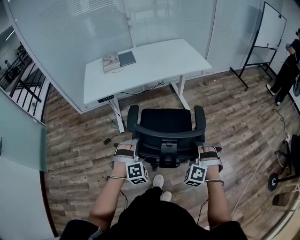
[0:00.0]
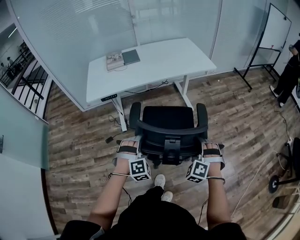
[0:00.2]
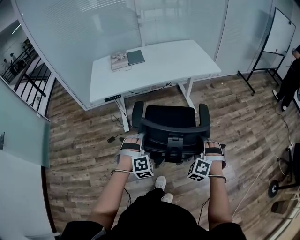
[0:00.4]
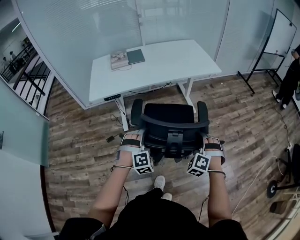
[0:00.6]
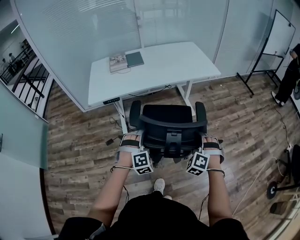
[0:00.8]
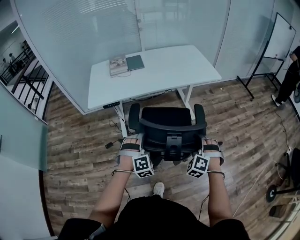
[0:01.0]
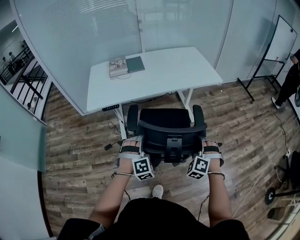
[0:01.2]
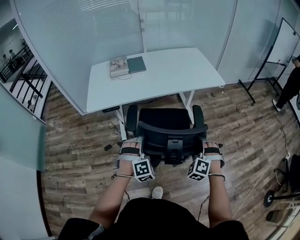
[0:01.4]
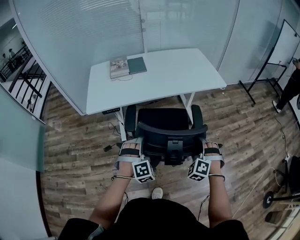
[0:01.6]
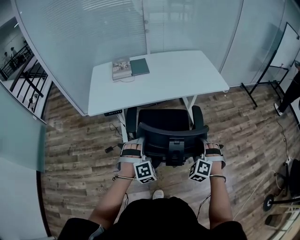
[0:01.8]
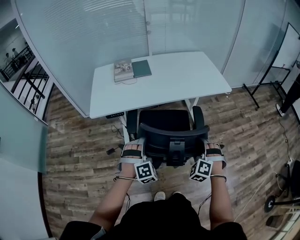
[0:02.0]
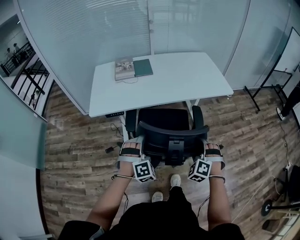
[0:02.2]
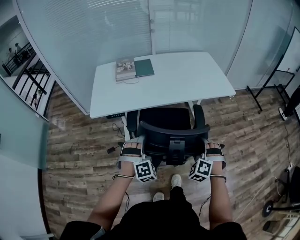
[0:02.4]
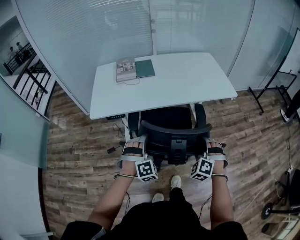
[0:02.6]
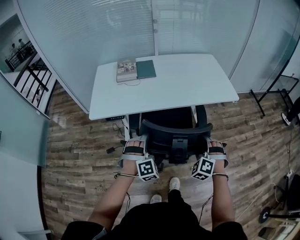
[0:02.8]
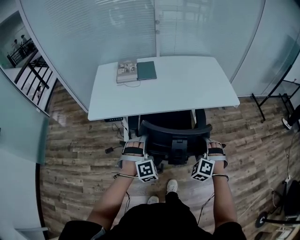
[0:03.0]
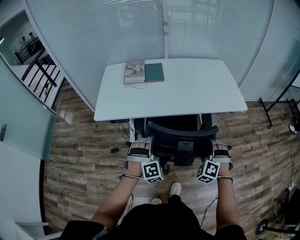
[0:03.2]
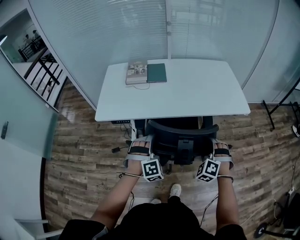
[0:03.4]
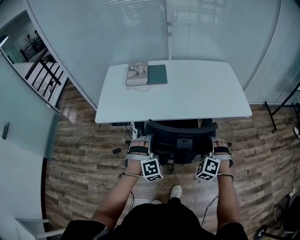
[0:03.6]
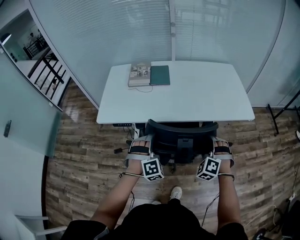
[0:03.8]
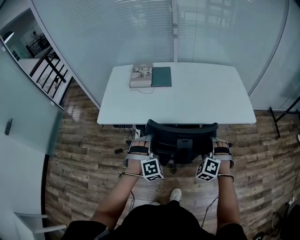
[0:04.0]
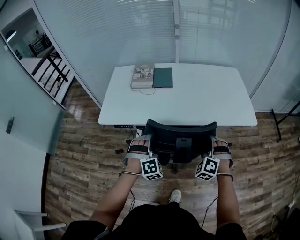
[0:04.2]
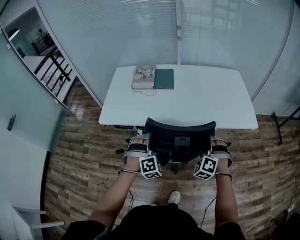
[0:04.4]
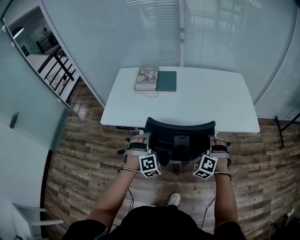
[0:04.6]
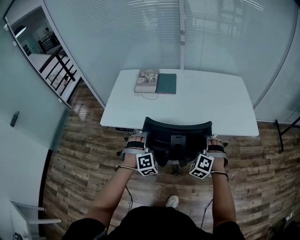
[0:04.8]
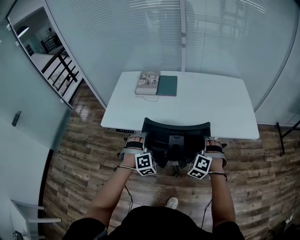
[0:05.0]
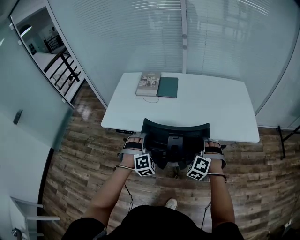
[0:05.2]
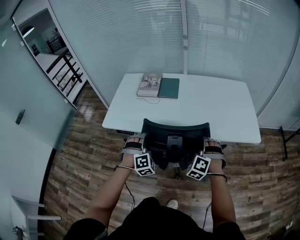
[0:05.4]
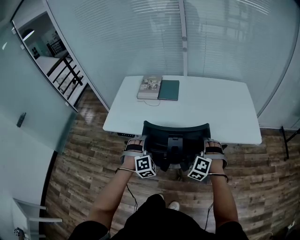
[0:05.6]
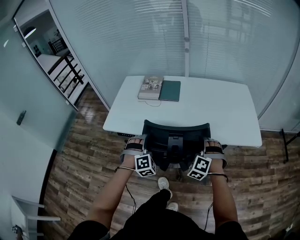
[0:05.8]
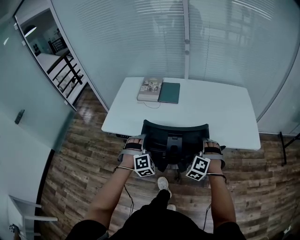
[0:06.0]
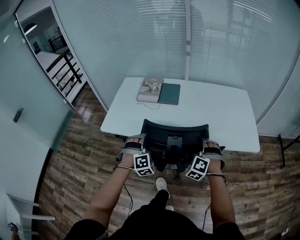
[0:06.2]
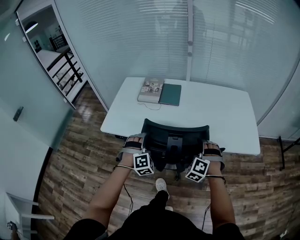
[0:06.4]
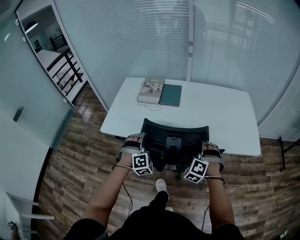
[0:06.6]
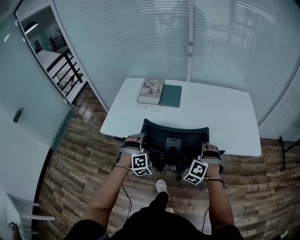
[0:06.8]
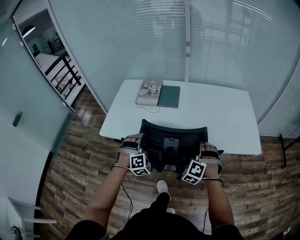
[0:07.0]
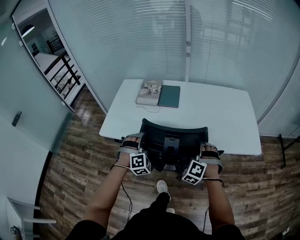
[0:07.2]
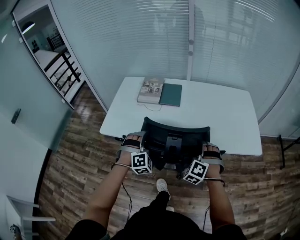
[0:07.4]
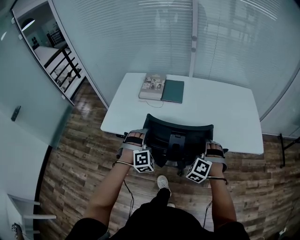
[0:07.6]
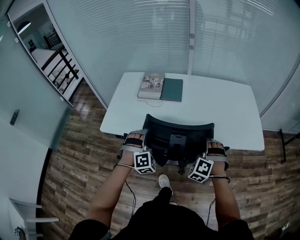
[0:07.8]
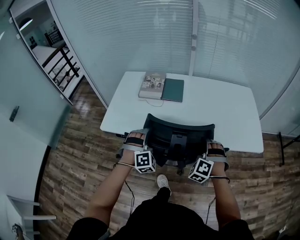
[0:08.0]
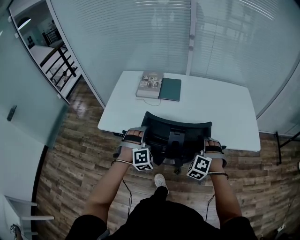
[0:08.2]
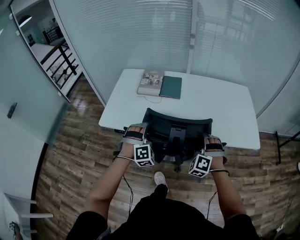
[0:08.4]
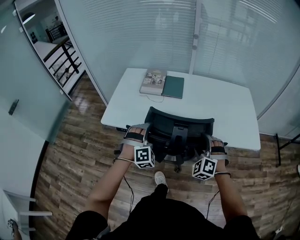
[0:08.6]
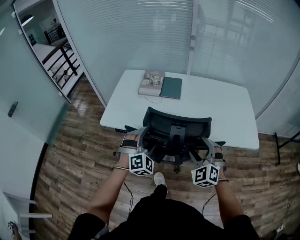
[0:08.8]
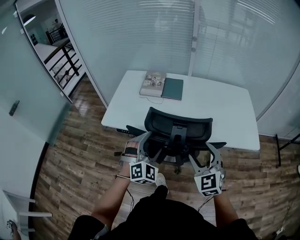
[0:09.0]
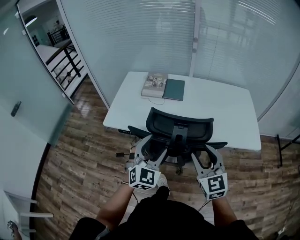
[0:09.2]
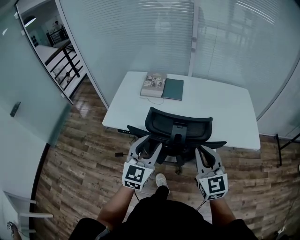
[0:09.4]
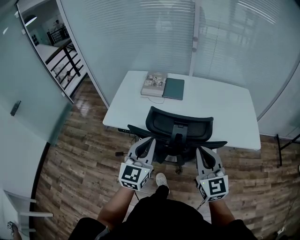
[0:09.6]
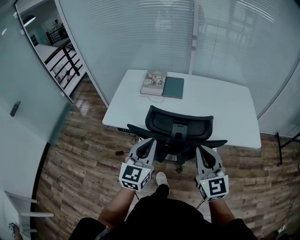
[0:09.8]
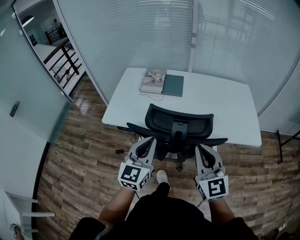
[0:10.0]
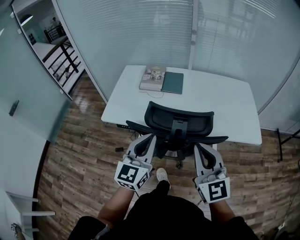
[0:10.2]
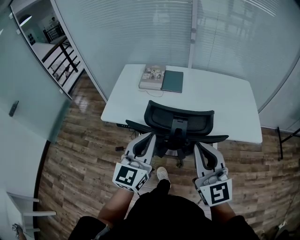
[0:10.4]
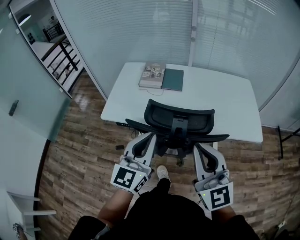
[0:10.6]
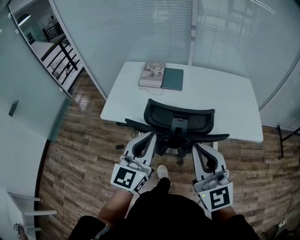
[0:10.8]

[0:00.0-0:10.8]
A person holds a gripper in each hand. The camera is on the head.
0.0 to 1.6 s: The two grippers go some 15 cm forward.
1.6 to 3.0 s: Both grippers travel together forward, about 15 cm.
3.0 to 4.6 s: Both grippers move forward, approximately 15 cm.
4.6 to 6.2 s: Both grippers travel together forward, approximately 5 cm.
6.2 to 7.8 s: There are only small adjustments of the grippers.
7.8 to 9.2 s: Both grippers move upward and backward, roughly 15 cm. The right gripper turns by some 70 degrees. Meanwhile the left gripper rotates around the line of its fingers by approximately 40 degrees, counterclockwise from behind.
9.2 to 10.8 s: Both grippers travel together upward, some 10 cm. The left gripper changes its angle by approximately 40 degrees, and closes its fingers; the right gripper swivels about 20 degrees, and closes up.

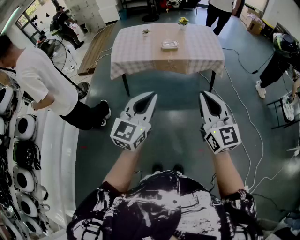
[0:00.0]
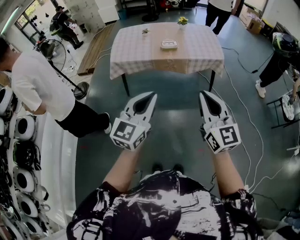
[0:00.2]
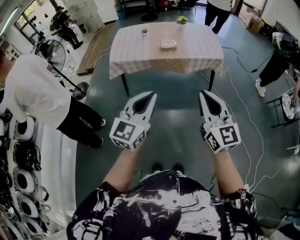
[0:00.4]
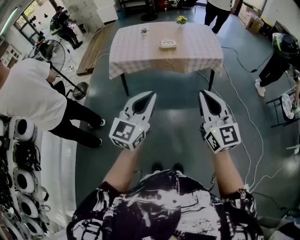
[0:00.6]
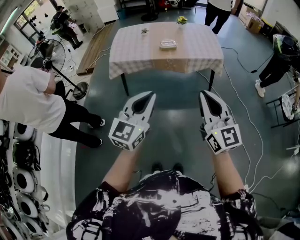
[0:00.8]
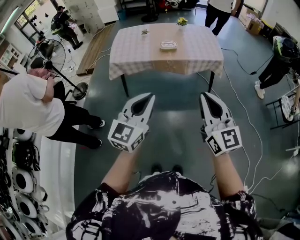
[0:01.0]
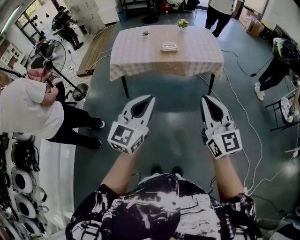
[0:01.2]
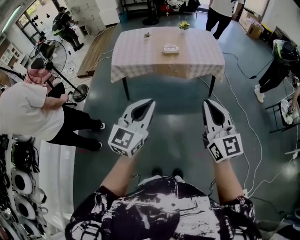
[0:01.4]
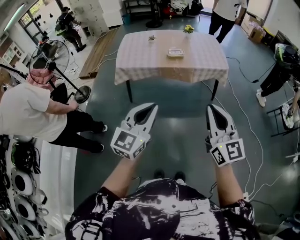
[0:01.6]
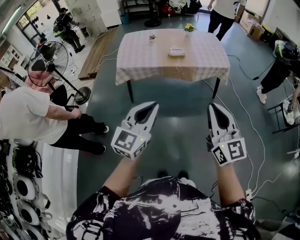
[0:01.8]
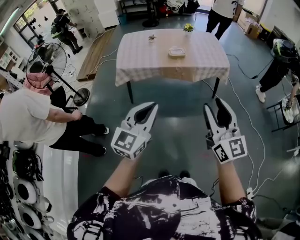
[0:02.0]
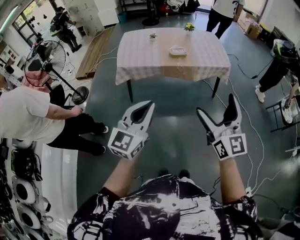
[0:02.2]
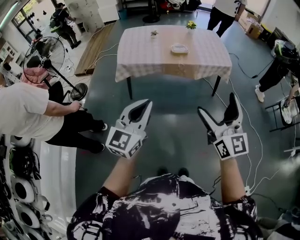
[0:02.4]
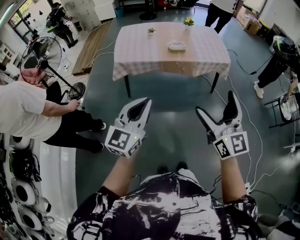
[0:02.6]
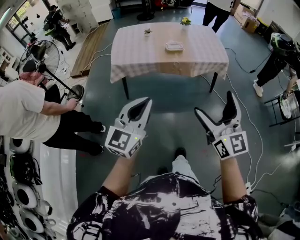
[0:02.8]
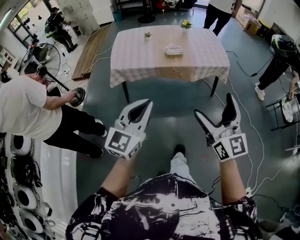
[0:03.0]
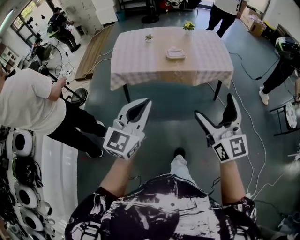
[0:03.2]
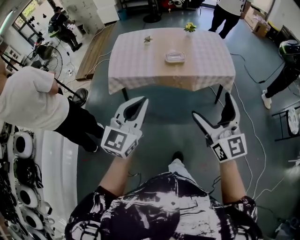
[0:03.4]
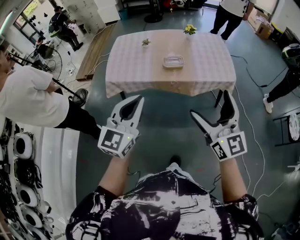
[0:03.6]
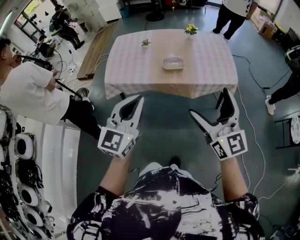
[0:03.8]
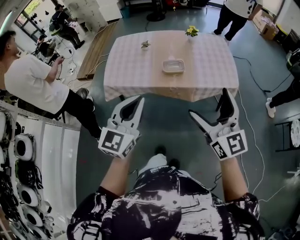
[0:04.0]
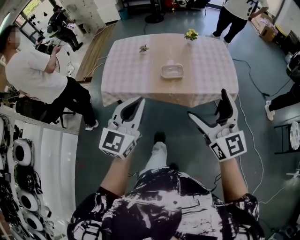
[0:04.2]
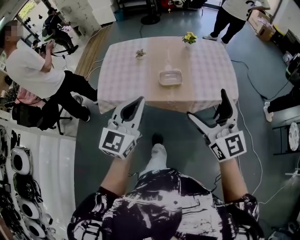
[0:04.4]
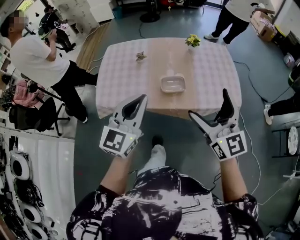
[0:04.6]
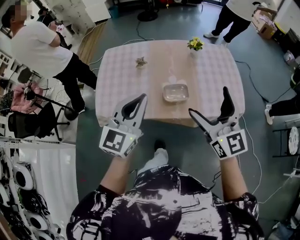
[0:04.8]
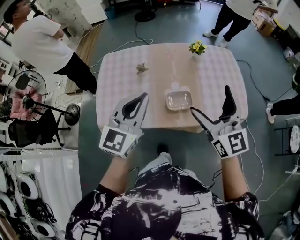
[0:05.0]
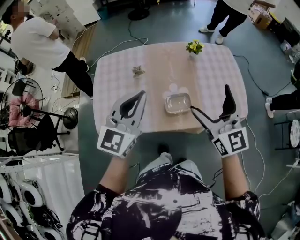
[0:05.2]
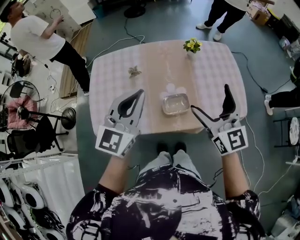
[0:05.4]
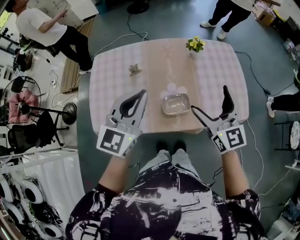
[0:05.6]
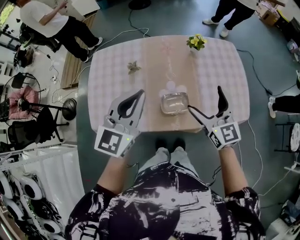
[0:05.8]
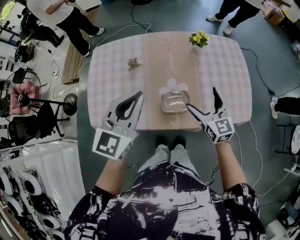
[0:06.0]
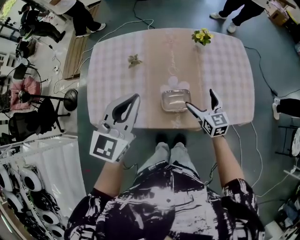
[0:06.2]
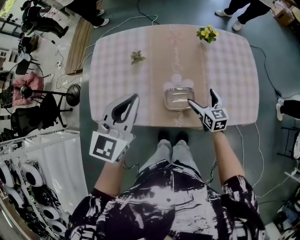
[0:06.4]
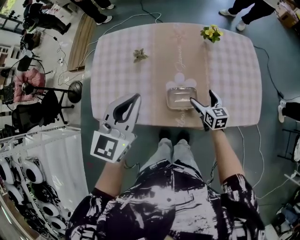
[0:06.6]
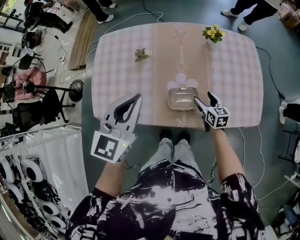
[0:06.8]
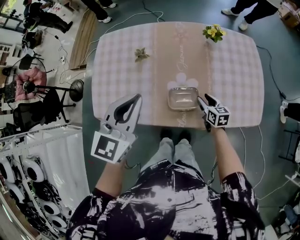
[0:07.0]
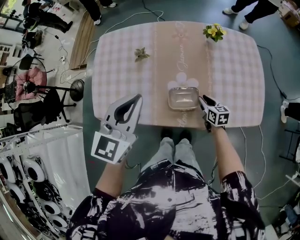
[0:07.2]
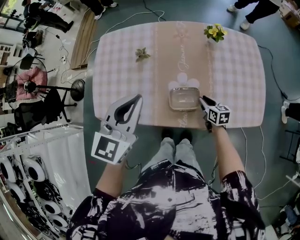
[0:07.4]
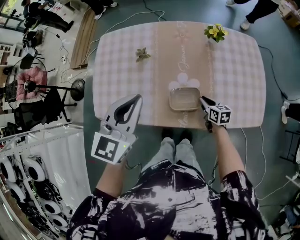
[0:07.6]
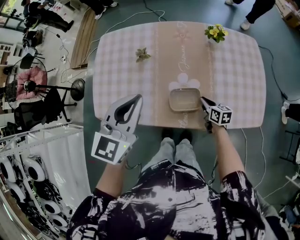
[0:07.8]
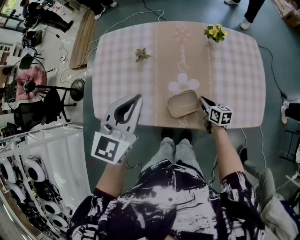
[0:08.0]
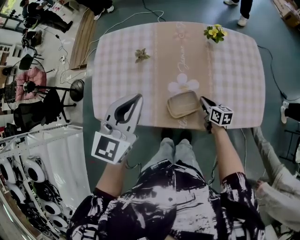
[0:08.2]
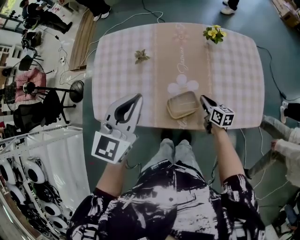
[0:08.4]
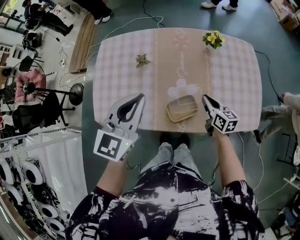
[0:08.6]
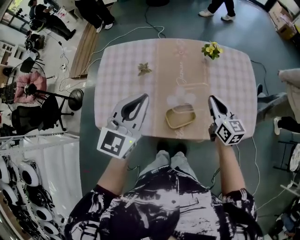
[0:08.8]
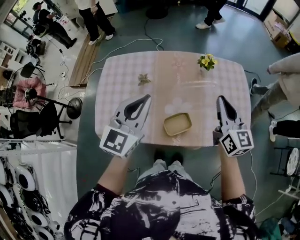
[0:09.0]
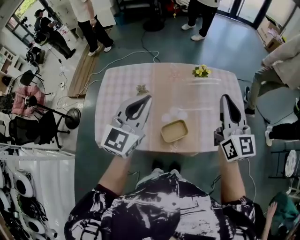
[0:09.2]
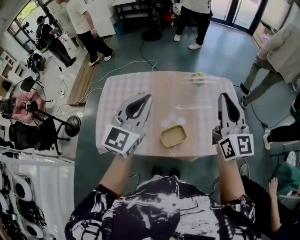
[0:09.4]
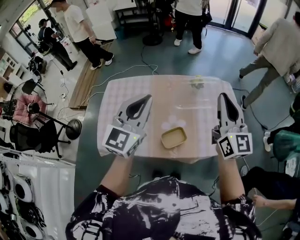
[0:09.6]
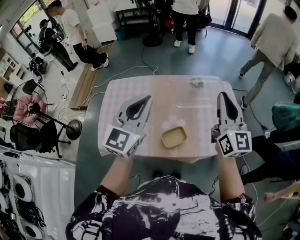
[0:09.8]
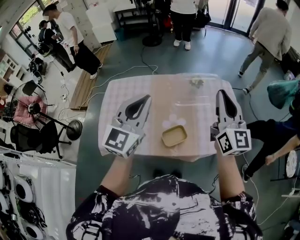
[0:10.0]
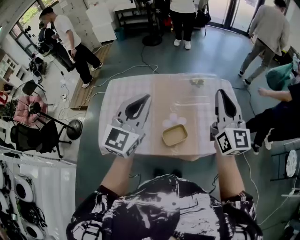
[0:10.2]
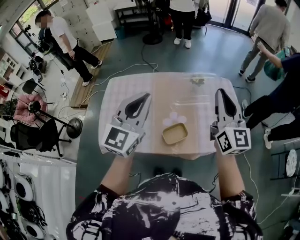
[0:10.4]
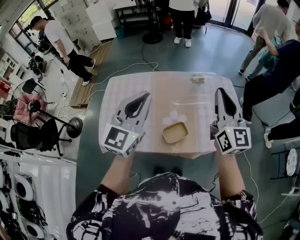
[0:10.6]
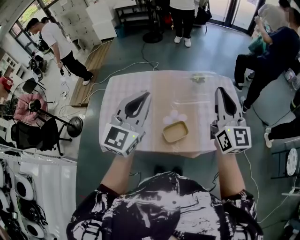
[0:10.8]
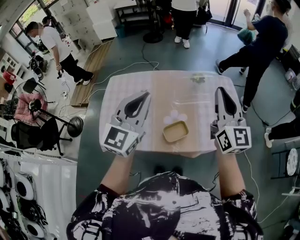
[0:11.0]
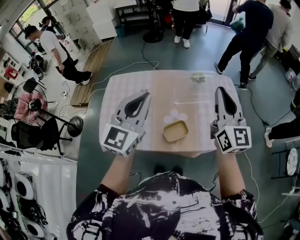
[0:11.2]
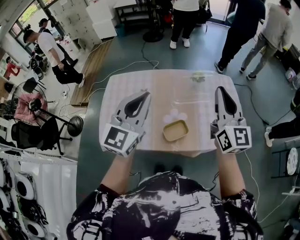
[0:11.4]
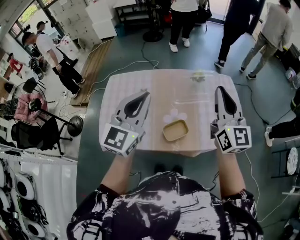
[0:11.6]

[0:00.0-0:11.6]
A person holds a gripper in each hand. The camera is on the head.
0.0 to 1.4 s: The grippers stay close to where they were, moving slightly.
1.4 to 2.8 s: Both grippers travel together to the left, some 10 cm. The right gripper opens its fingers.
2.8 to 4.4 s: The pair of grippers is taken forward, approximately 40 cm.
4.4 to 5.8 s: The grippers both shift forward by some 35 cm.
5.8 to 7.2 s: The left gripper heads downward, covering about 5 cm; the right gripper heads downward, covering about 30 cm, angles its fingers downward, by approximately 30 degrees, and closes.
7.2 to 8.8 s: The right gripper travels upward by about 25 cm, and turns by approximately 20 degrees.
8.8 to 10.2 s: The right gripper shifts some 30 cm upward, and rotates some 40 degrees. The left gripper shifts roughly 15 cm upward.
10.2 to 11.6 s: The grippers make only small movements.

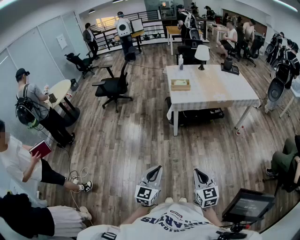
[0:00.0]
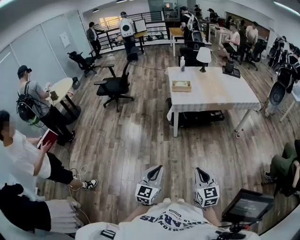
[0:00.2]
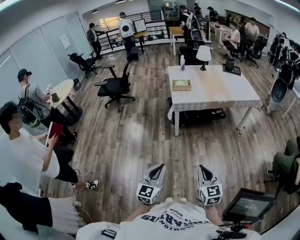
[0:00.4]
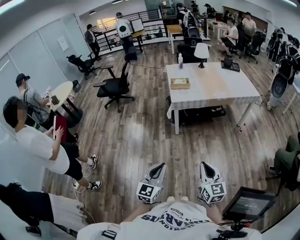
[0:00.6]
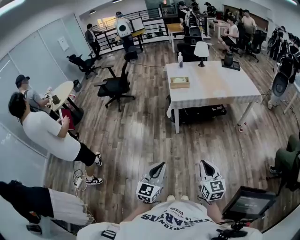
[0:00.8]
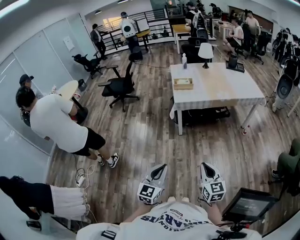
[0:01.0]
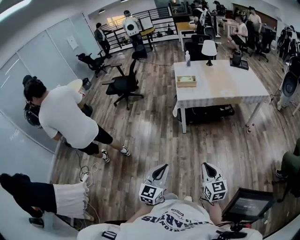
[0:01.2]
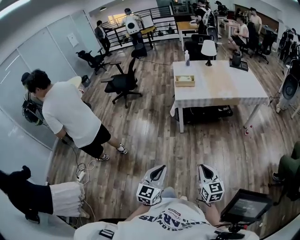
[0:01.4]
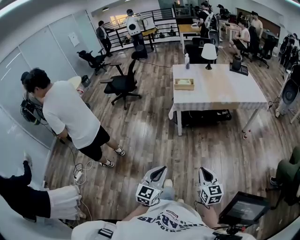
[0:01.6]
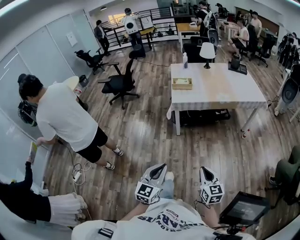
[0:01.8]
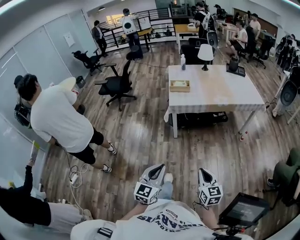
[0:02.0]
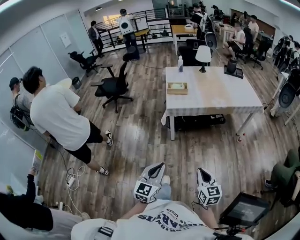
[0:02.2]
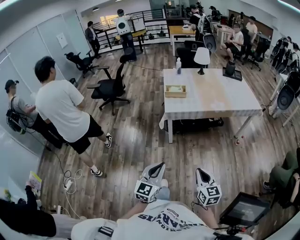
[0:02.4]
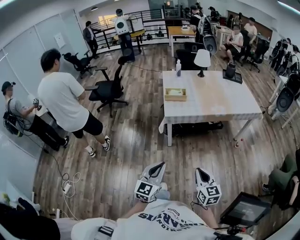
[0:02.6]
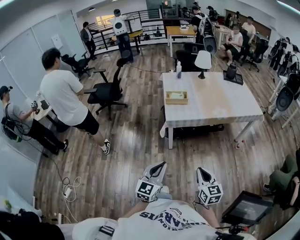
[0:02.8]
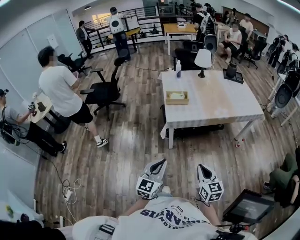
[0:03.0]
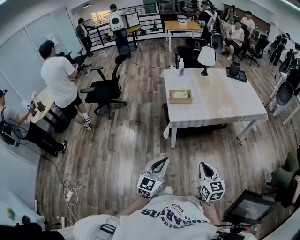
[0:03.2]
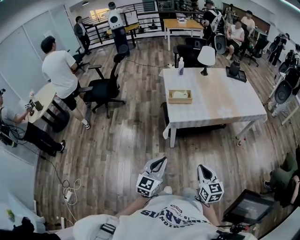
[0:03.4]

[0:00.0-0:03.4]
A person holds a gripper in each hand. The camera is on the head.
0.0 to 1.6 s: Both grippers travel together to the right, approximately 10 cm.
1.6 to 3.4 s: The two grippers go about 30 cm forward.
